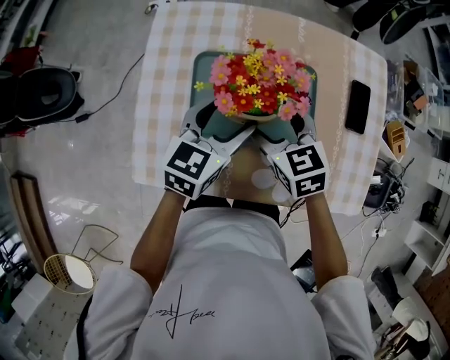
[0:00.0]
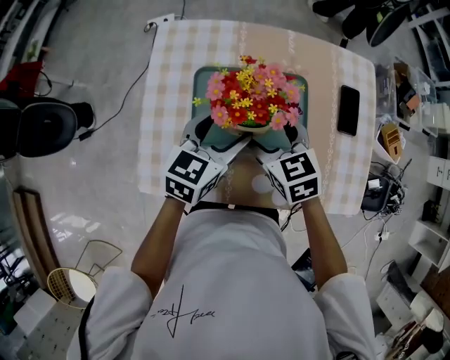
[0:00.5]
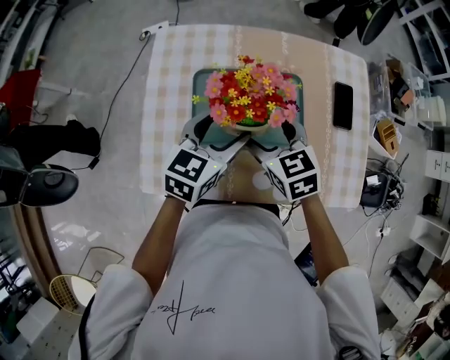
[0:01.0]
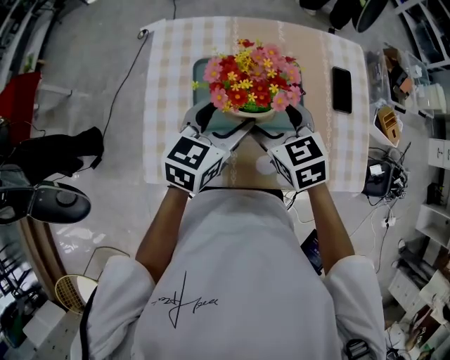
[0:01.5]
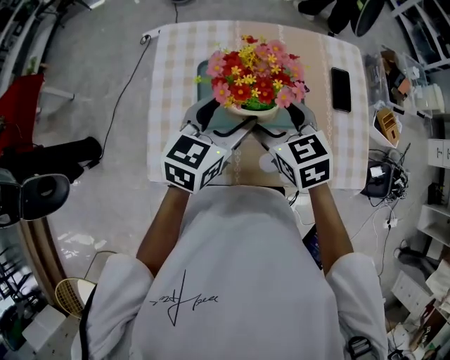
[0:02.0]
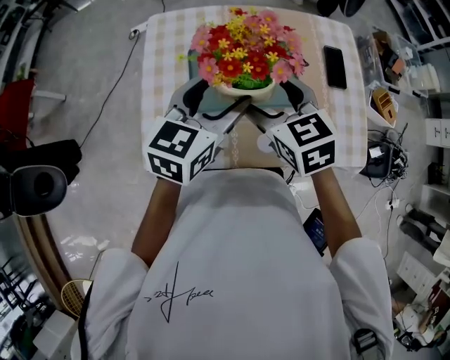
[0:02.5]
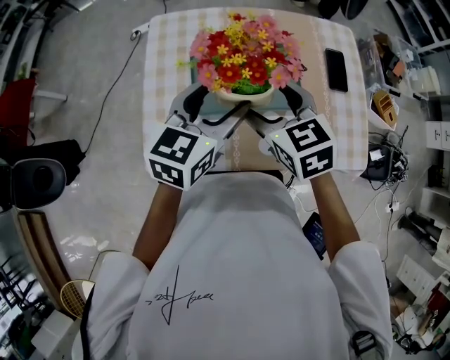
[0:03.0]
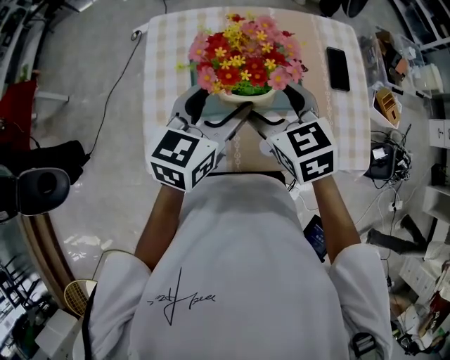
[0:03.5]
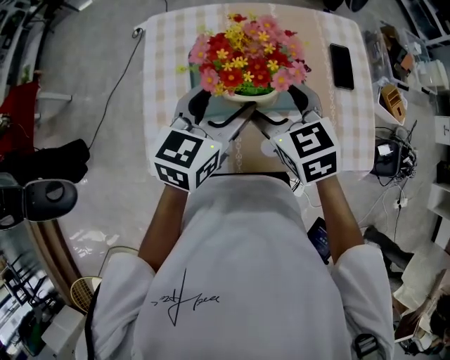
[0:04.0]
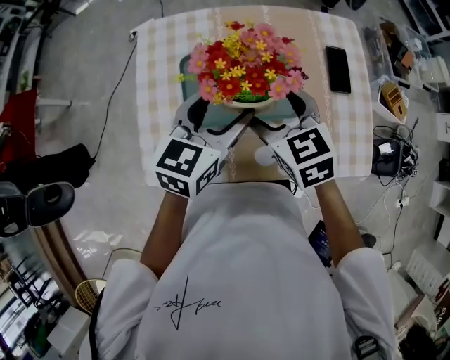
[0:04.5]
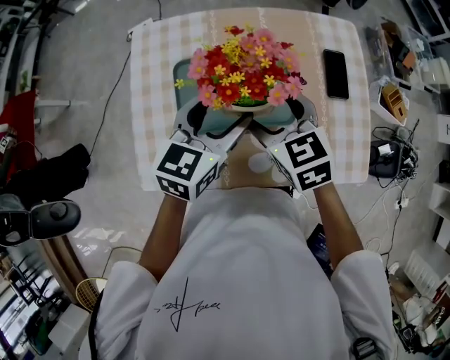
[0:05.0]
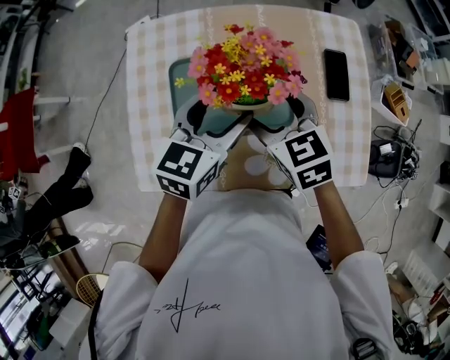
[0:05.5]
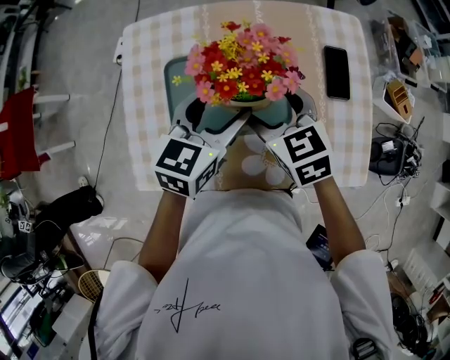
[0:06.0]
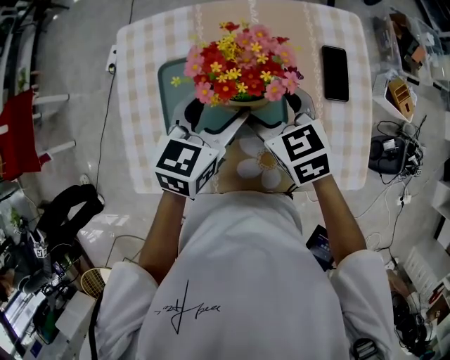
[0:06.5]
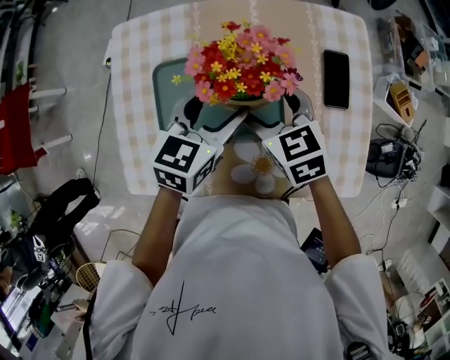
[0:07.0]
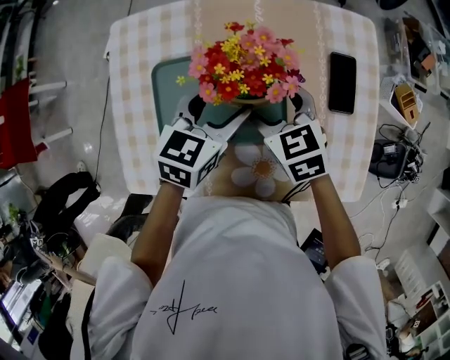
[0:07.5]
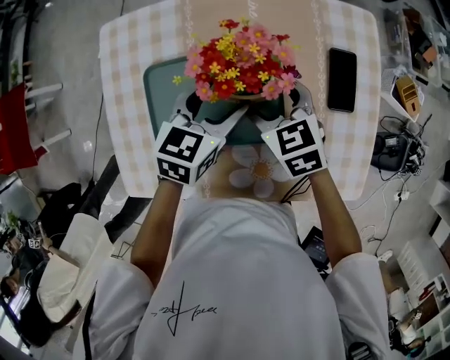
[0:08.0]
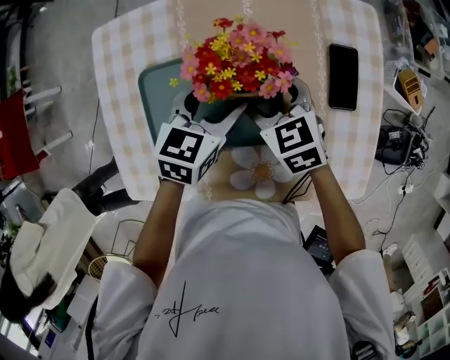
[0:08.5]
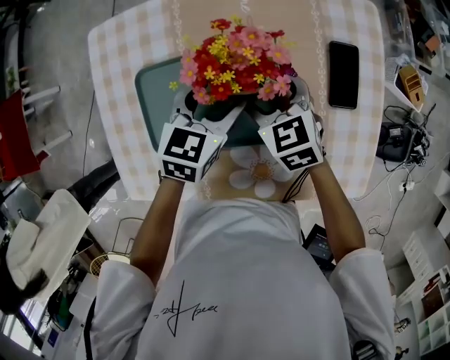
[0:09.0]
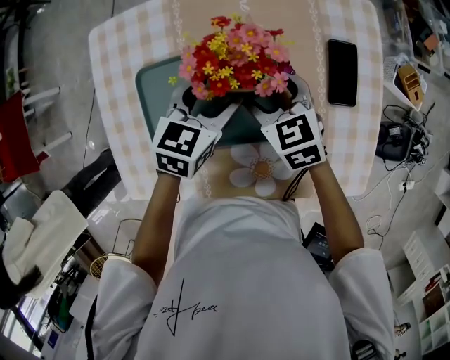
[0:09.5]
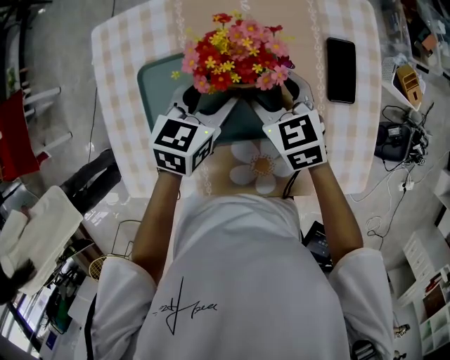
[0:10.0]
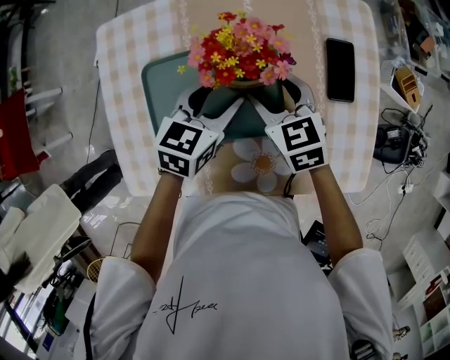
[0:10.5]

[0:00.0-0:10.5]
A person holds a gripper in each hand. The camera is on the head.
0:00.0 to 0:02.0: The two grippers go some 10 cm upward and backward.
0:02.0 to 0:04.0: There are only small adjustments of the grippers.
0:04.0 to 0:06.5: The two grippers go approximately 10 cm forward, to the right and downward.
0:06.5 to 0:08.5: The right gripper shifts some 10 cm downward and forward. Meanwhile the left gripper heads downward, covering about 5 cm.
0:08.5 to 0:10.5: The grippers make only small movements.

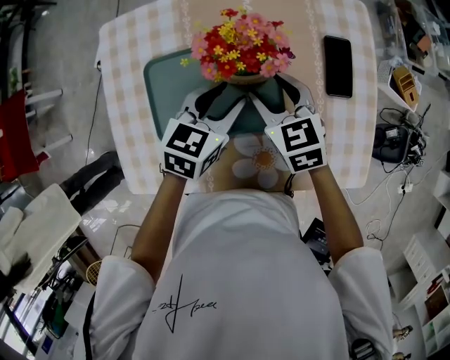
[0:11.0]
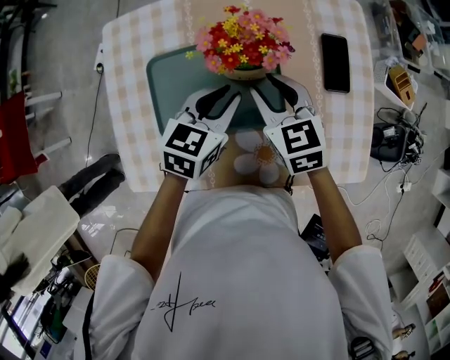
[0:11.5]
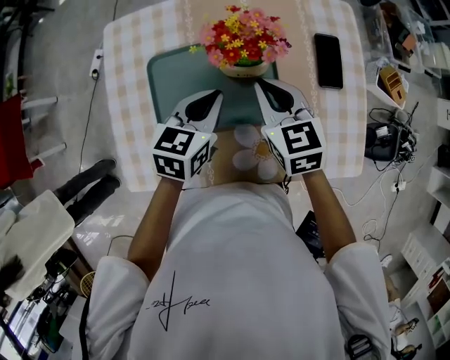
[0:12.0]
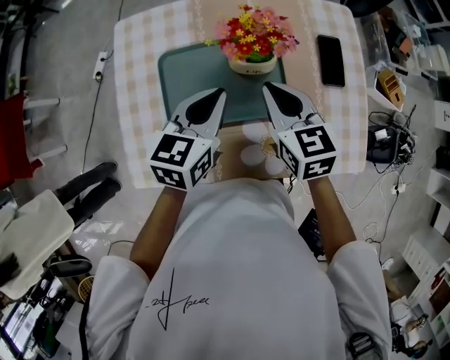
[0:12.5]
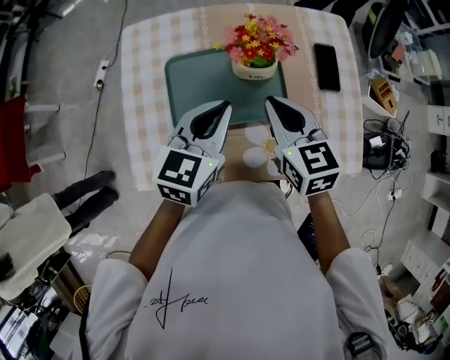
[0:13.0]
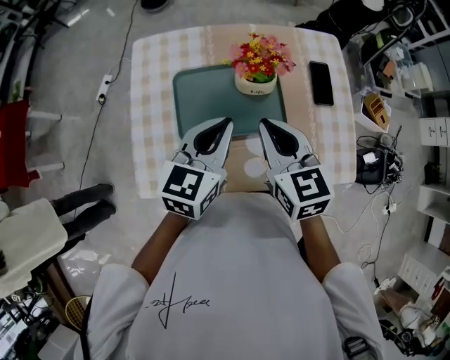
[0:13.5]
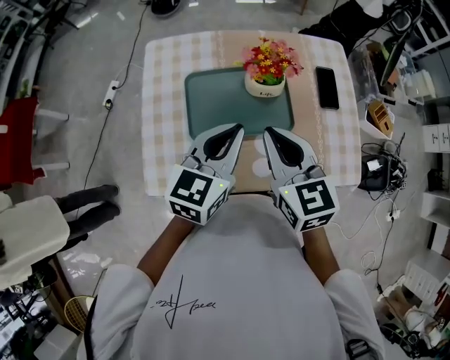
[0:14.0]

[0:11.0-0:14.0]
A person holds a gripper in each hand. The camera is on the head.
0:11.0 to 0:12.5: The right gripper moves upward, some 5 cm, and closes its fingers. Meanwhile the left gripper heads upward and to the left, covering approximately 10 cm, and closes.
0:12.5 to 0:14.0: The grippers both shift backward and upward by about 15 cm.

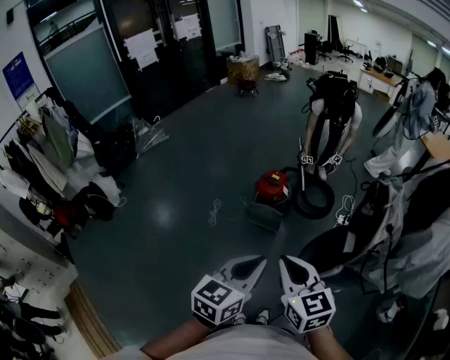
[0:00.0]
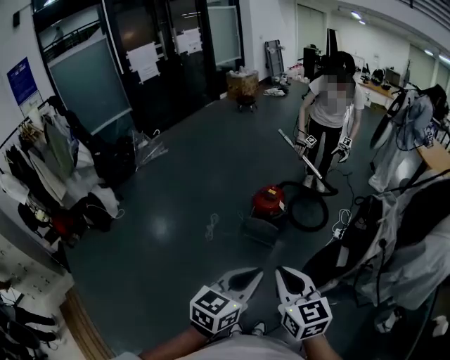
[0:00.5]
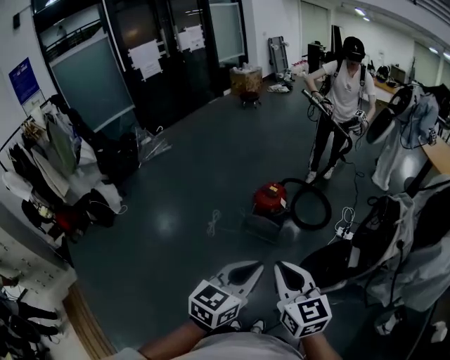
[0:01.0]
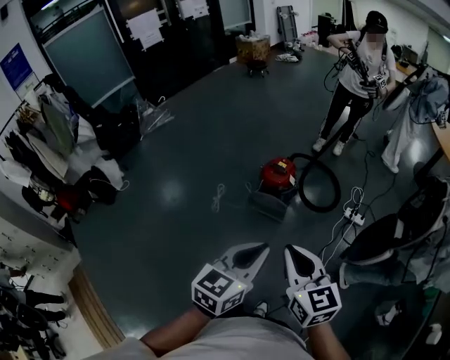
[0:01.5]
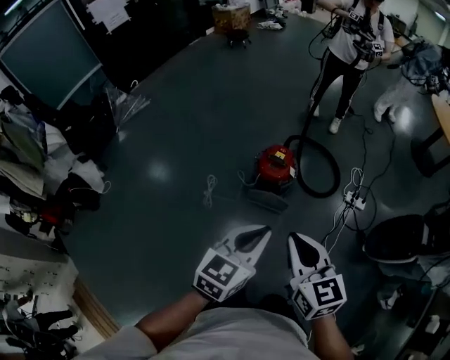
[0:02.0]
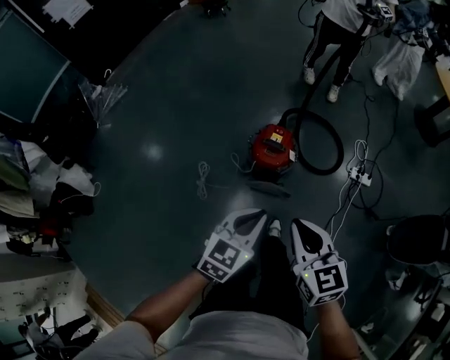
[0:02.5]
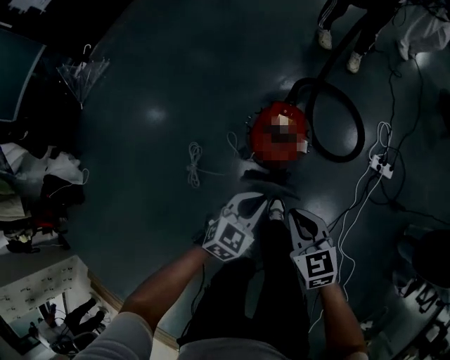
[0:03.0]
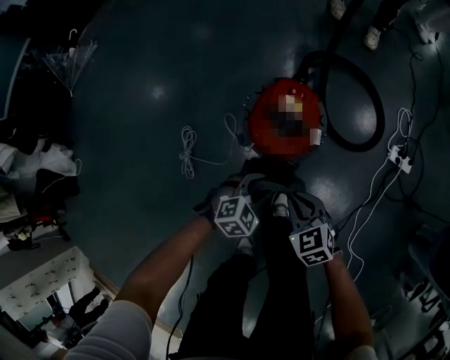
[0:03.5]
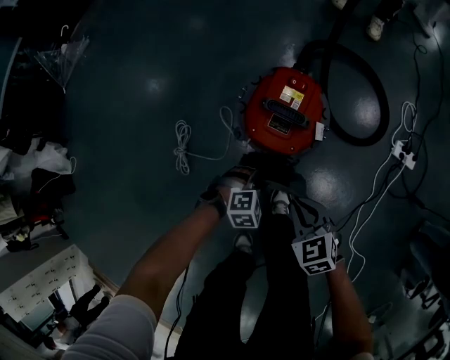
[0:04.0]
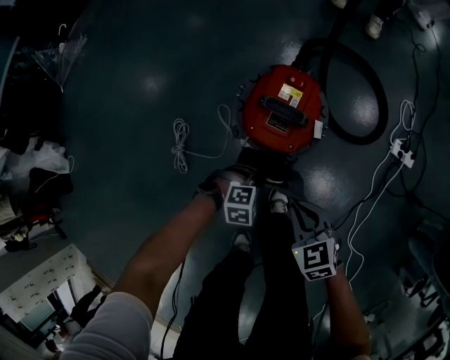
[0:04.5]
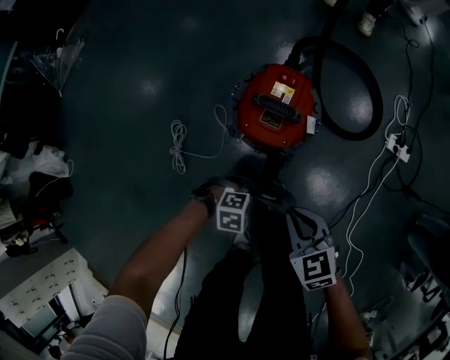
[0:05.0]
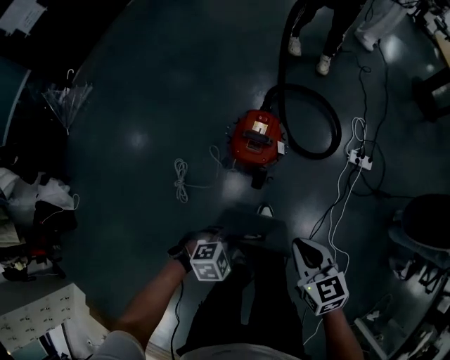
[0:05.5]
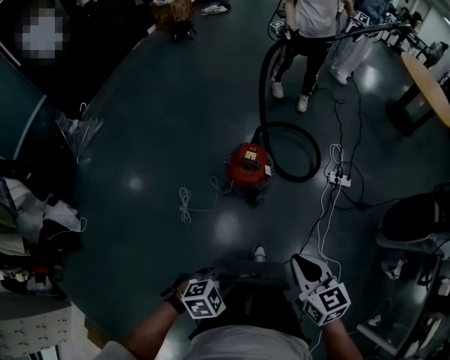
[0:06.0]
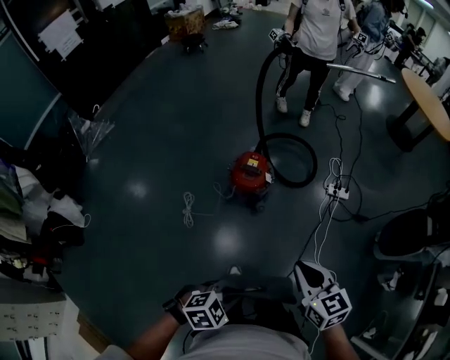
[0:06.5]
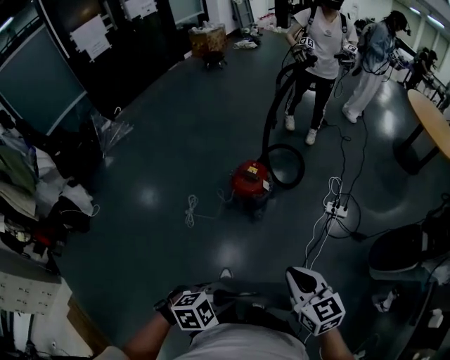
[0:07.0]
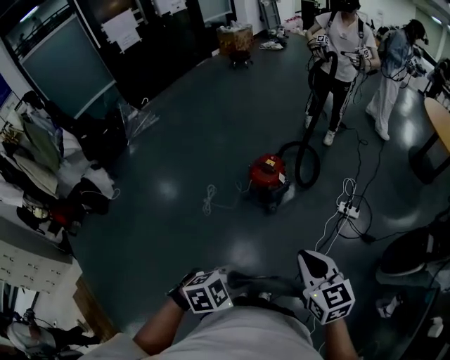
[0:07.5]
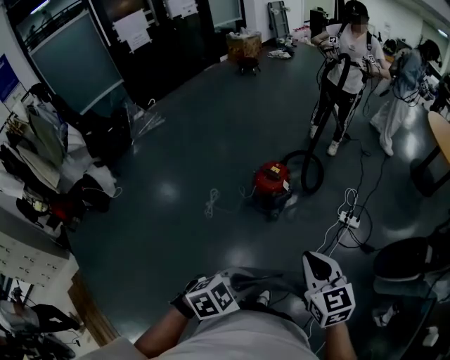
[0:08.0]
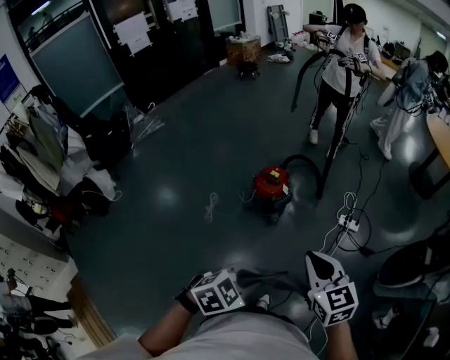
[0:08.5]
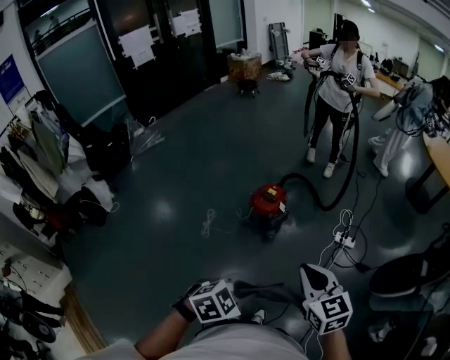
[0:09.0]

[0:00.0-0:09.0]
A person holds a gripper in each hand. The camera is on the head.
0:00.0 to 0:02.0: Both grippers travel together forward, some 25 cm.
0:02.0 to 0:04.5: Both grippers move downward, approximately 70 cm. The right gripper turns by about 30 degrees; the left gripper tilts its fingers roughly 50 degrees downward, and opens, then closes again.
0:04.5 to 0:07.0: The two grippers go some 60 cm upward. The left gripper swivels some 20 degrees. The right gripper swivels roughly 20 degrees.
0:07.0 to 0:09.0: Both grippers travel together upward, approximately 10 cm.

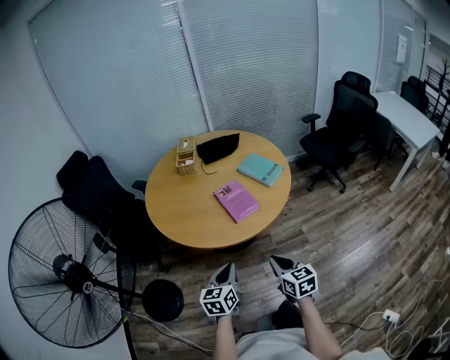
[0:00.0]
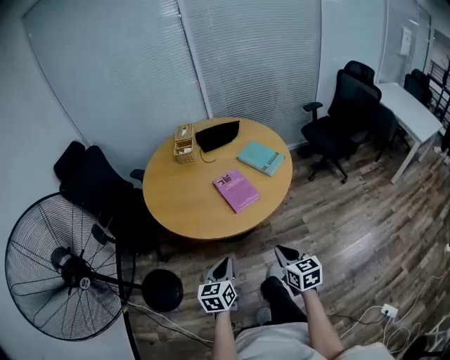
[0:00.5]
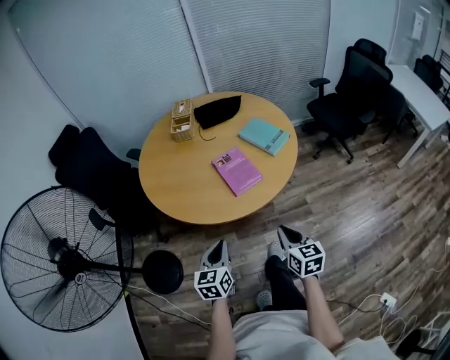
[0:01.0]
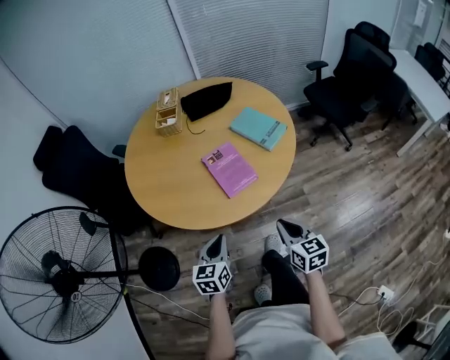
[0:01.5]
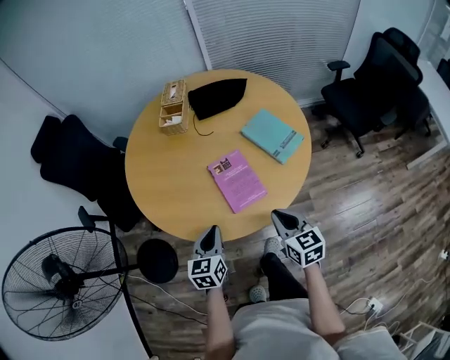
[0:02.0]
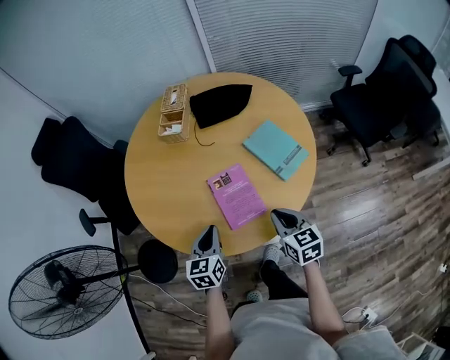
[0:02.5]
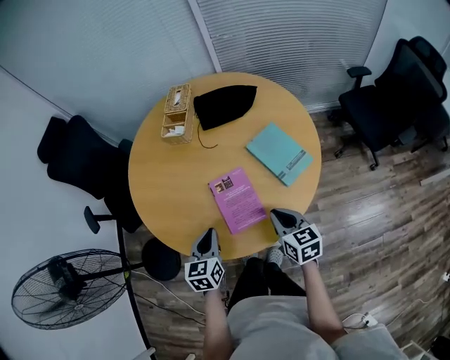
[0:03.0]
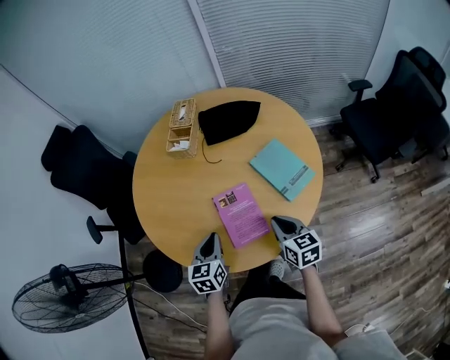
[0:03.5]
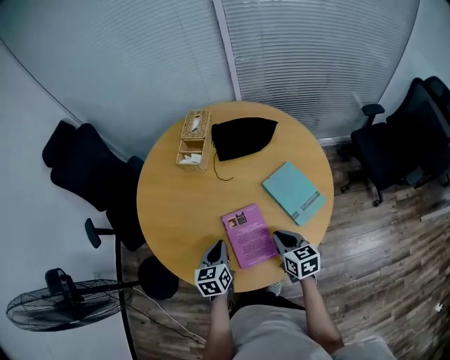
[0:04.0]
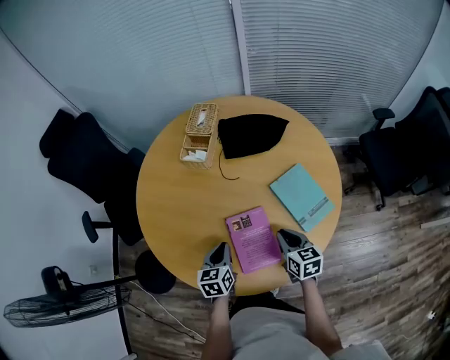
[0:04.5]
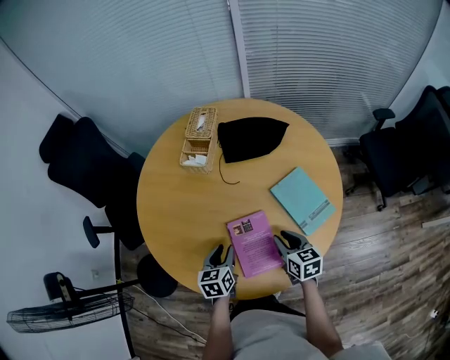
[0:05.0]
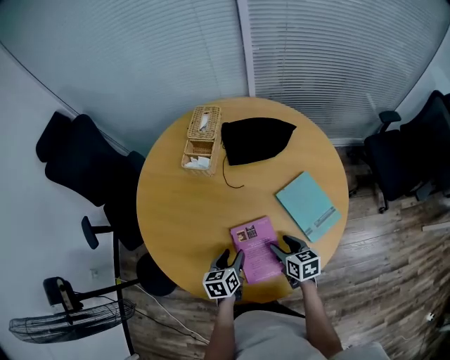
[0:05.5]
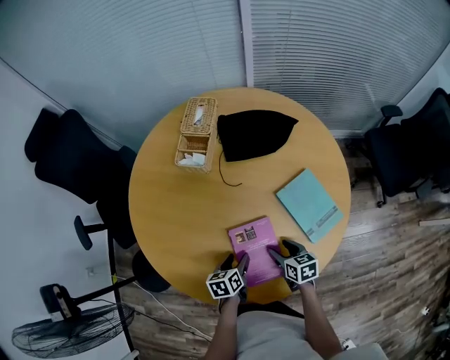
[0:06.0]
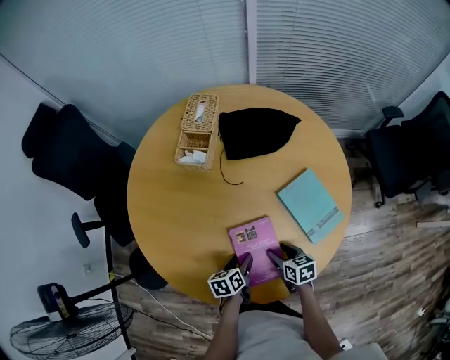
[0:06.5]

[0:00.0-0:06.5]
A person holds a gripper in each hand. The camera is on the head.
0:00.0 to 0:02.0: The grippers both shift forward by about 25 cm.
0:02.0 to 0:04.5: Both grippers travel together forward, approximately 20 cm.
0:04.5 to 0:06.5: Both grippers move downward, roughly 10 cm. The right gripper opens its fingers. The left gripper changes its angle by roughly 30 degrees, and opens up.
